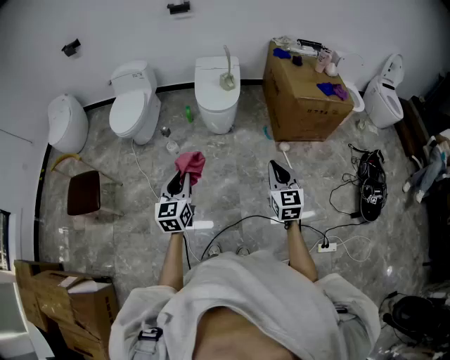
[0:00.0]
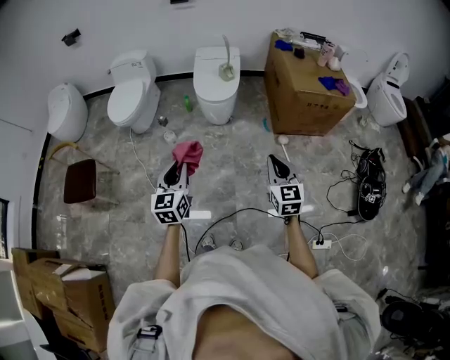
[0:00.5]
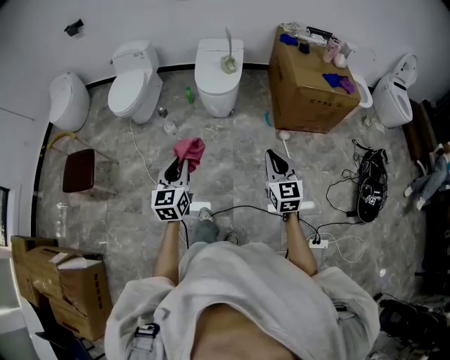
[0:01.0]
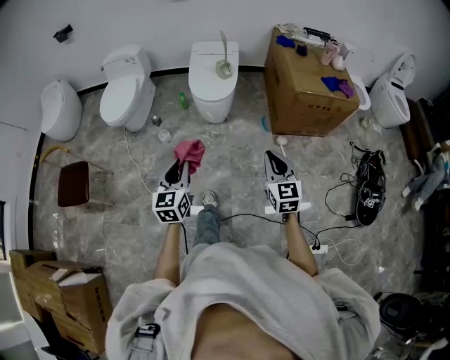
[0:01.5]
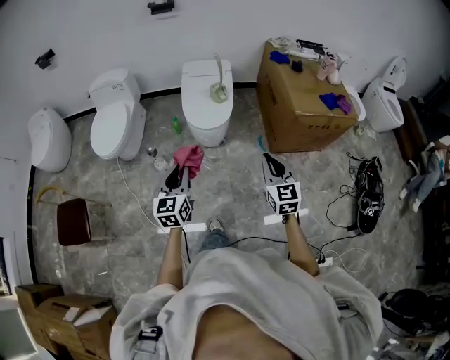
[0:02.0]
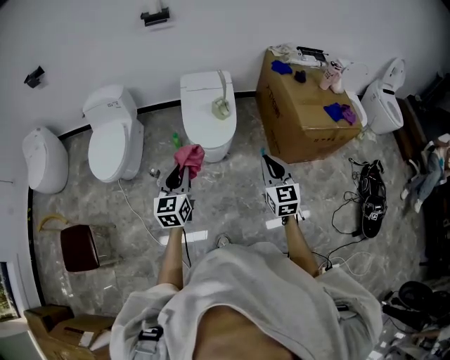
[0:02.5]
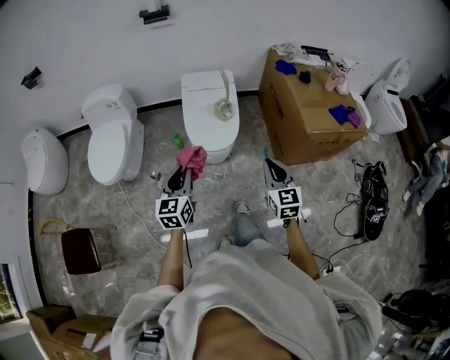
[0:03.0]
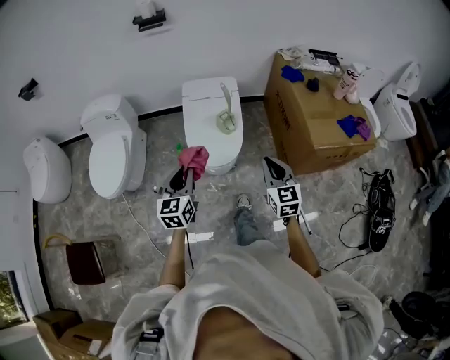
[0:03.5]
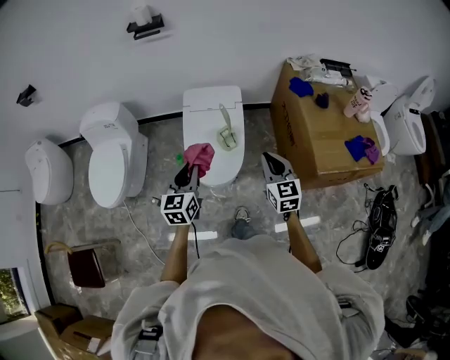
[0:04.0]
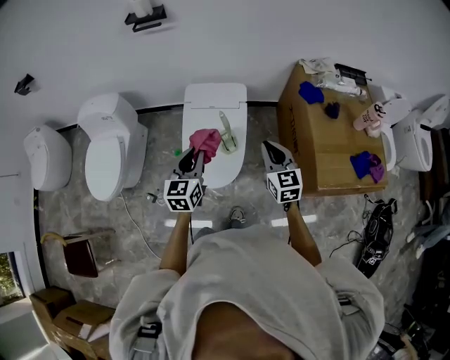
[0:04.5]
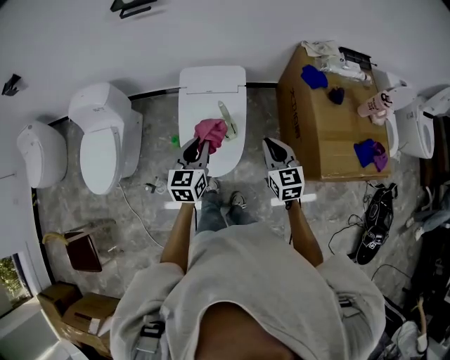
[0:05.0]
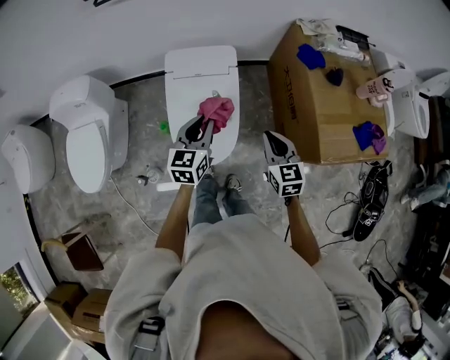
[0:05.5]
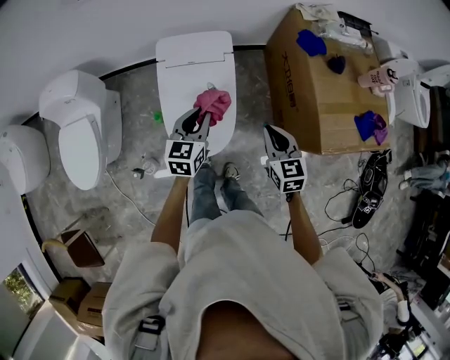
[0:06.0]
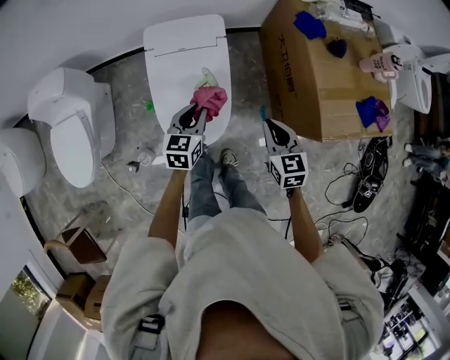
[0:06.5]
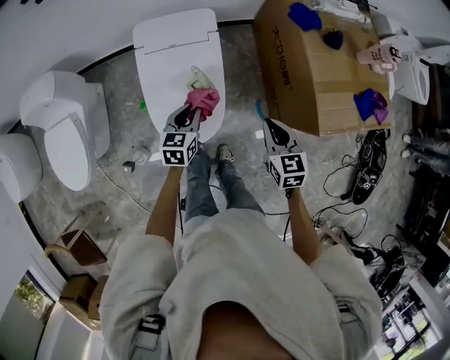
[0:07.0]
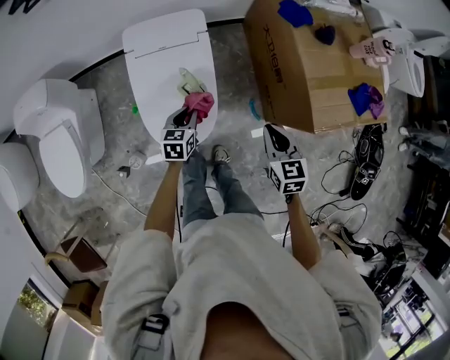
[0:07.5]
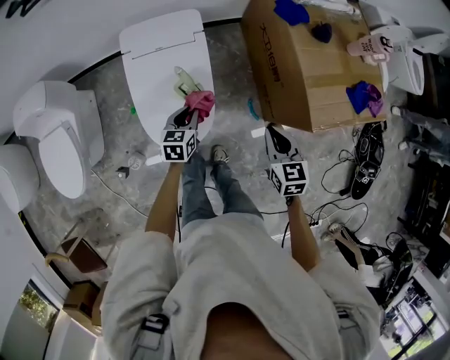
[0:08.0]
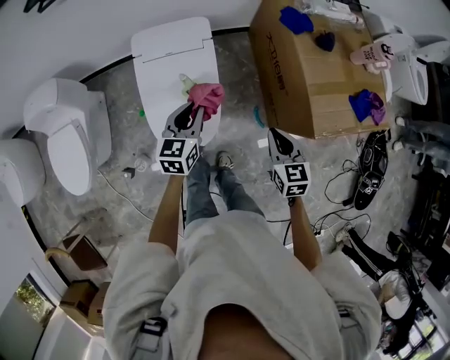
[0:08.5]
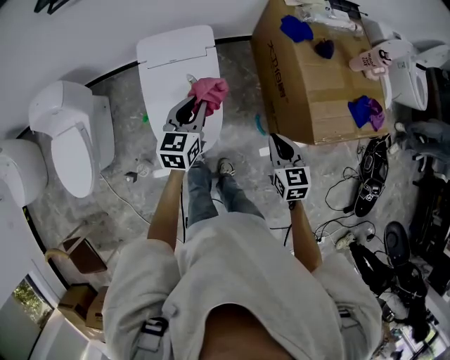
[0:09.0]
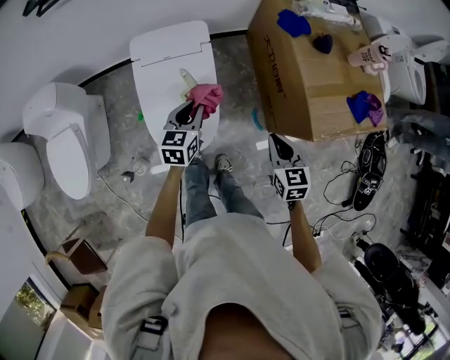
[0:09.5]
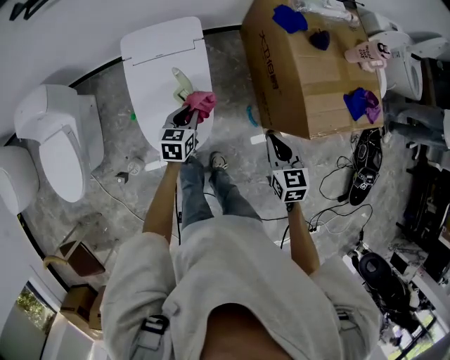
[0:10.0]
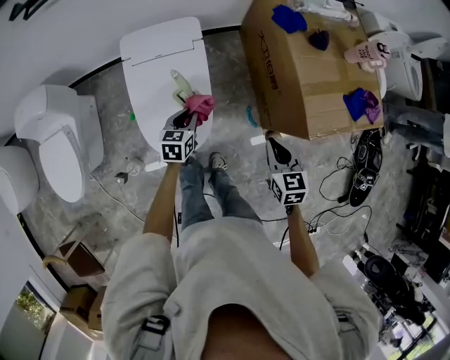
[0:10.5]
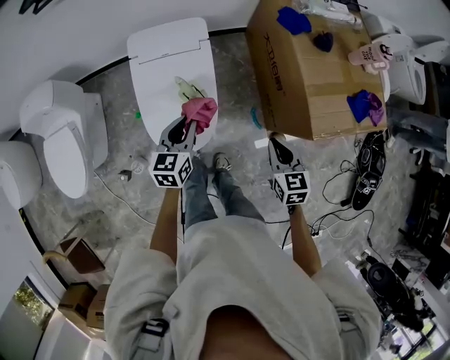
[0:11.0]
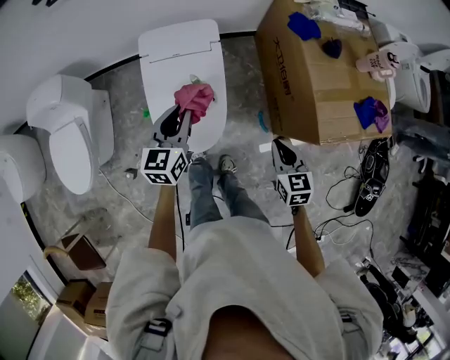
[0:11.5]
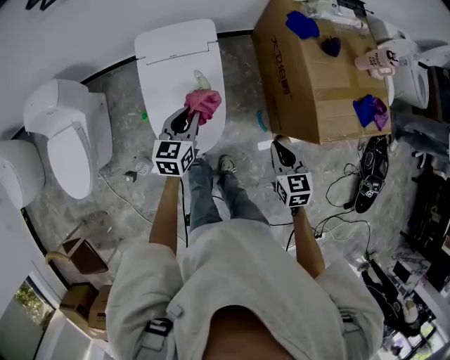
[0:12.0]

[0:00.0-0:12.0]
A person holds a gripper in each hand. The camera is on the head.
0:00.0 to 0:02.0: Both grippers move forward, roughly 25 cm.
0:02.0 to 0:04.0: The grippers both shift forward by about 40 cm.
0:04.0 to 0:06.0: The right gripper moves forward and downward, some 15 cm; the left gripper shifts about 20 cm forward, downward and to the right.
0:06.0 to 0:08.0: The right gripper travels to the right by approximately 10 cm; the left gripper moves downward, some 15 cm.
0:08.0 to 0:10.0: The left gripper travels upward and back again, approximately 15 cm each way.
0:10.0 to 0:12.0: The left gripper goes about 10 cm upward.

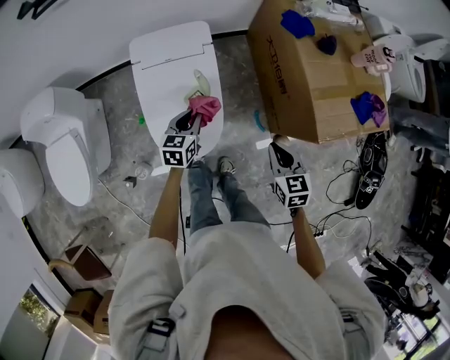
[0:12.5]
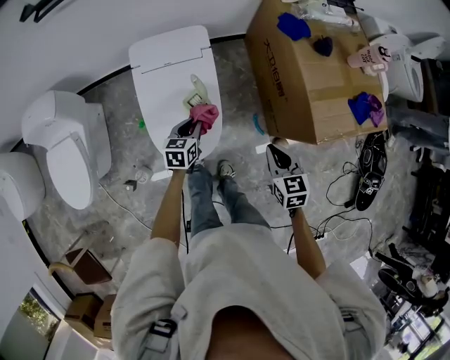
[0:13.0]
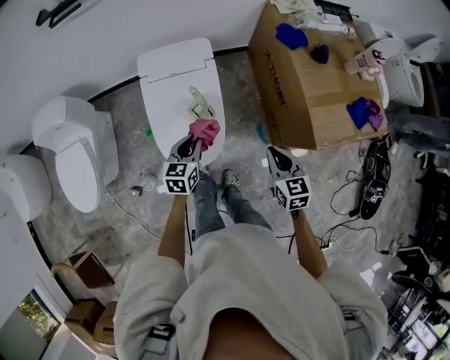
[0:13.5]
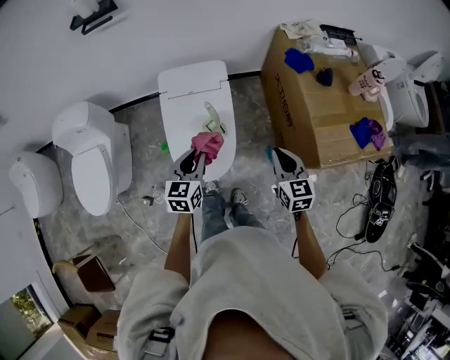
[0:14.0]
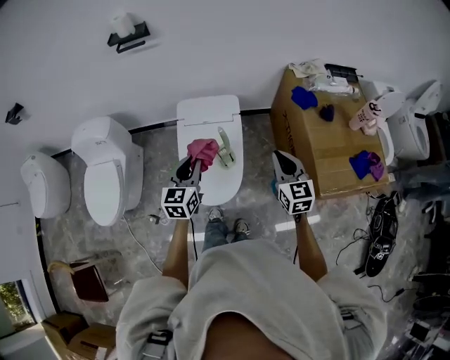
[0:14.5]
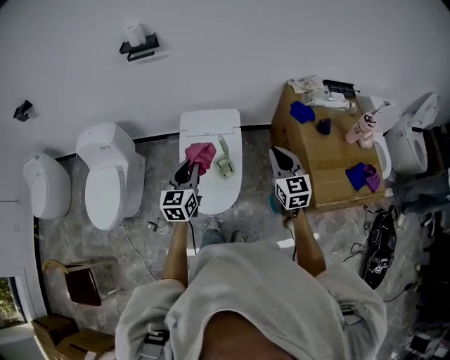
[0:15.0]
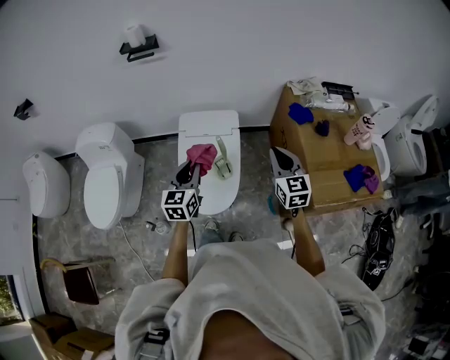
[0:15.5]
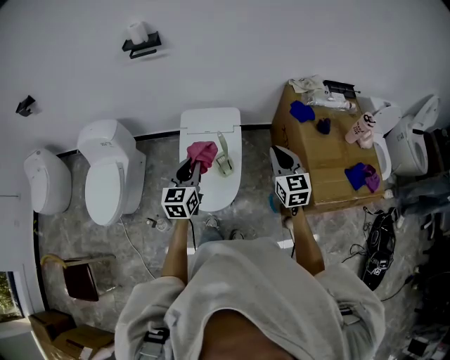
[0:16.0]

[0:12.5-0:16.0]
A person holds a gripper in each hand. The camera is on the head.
0:12.5 to 0:14.5: The right gripper is displaced upward and forward by approximately 15 cm, and rotates about 30 degrees; the left gripper moves upward, roughly 20 cm, and changes its angle by roughly 30 degrees.
0:14.5 to 0:16.0: The grippers move only a little.

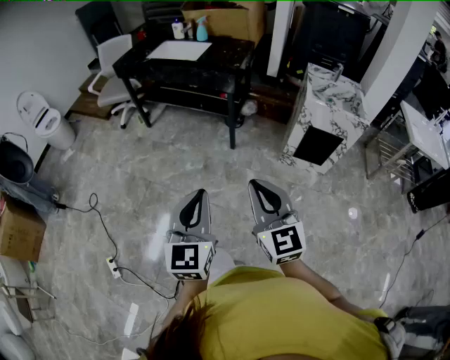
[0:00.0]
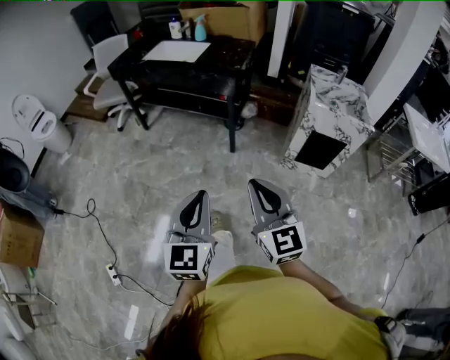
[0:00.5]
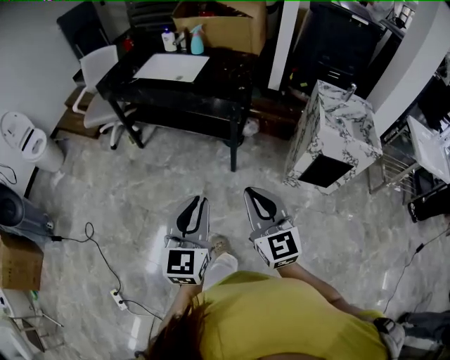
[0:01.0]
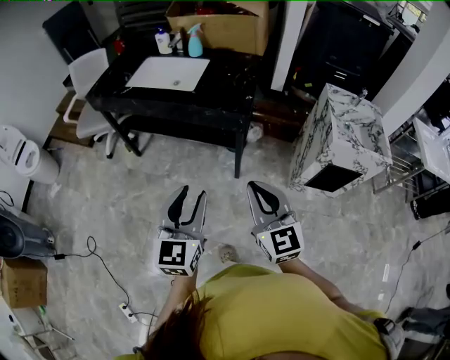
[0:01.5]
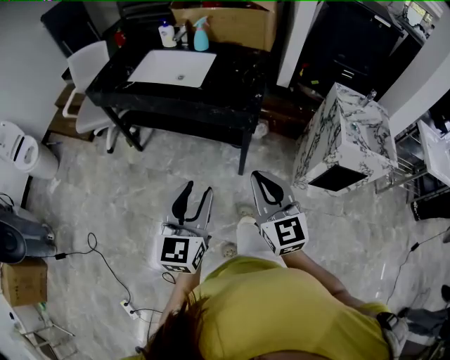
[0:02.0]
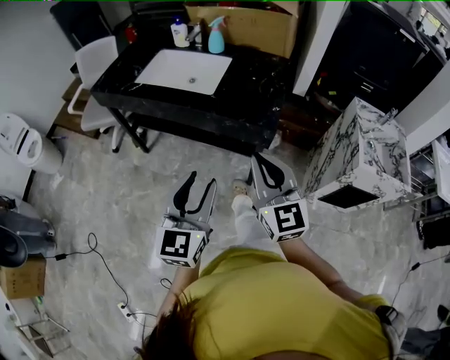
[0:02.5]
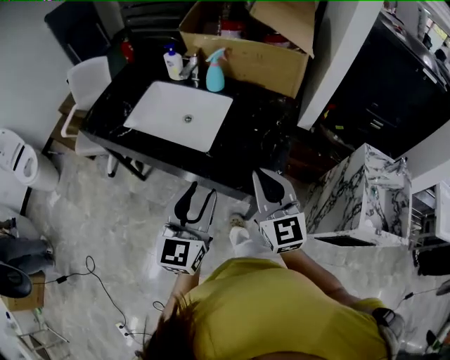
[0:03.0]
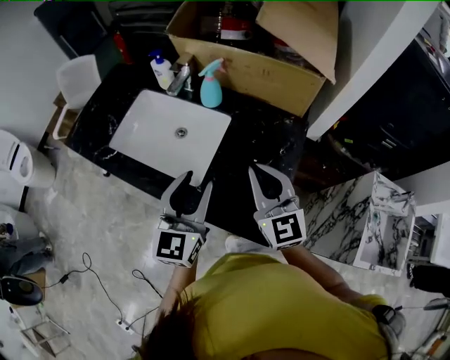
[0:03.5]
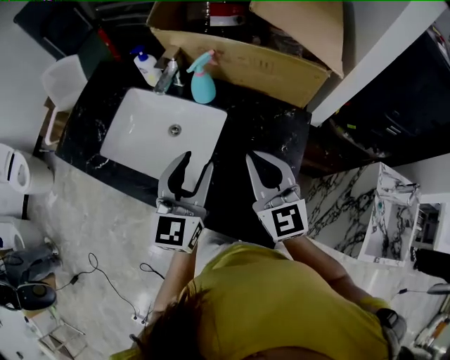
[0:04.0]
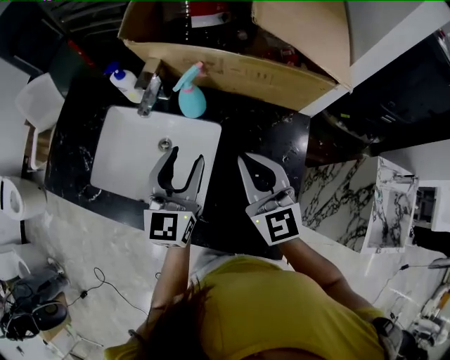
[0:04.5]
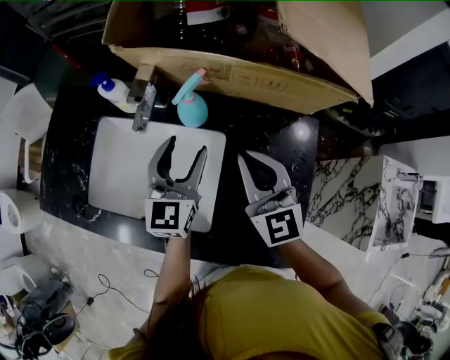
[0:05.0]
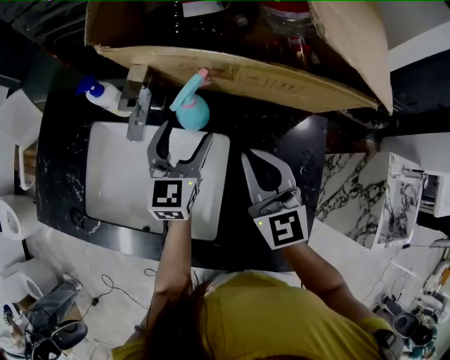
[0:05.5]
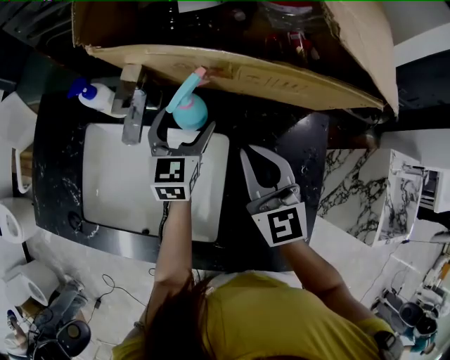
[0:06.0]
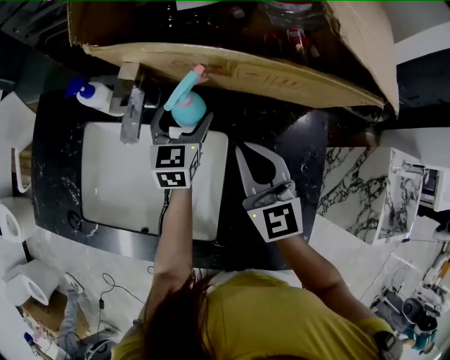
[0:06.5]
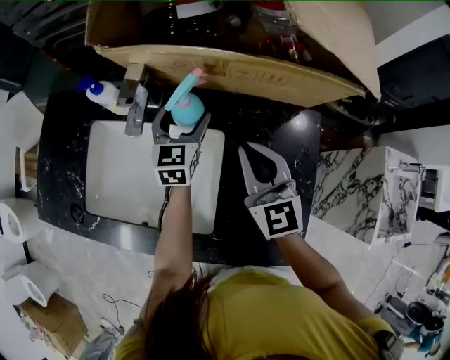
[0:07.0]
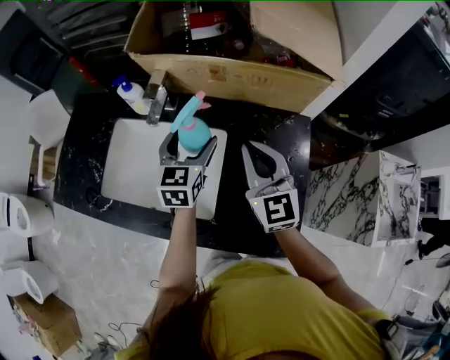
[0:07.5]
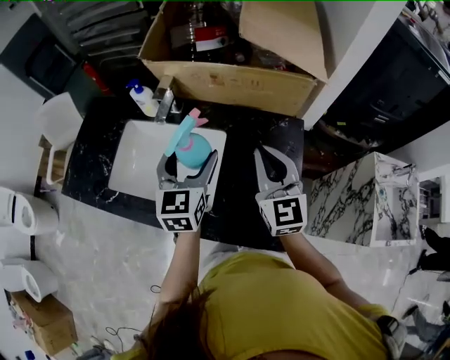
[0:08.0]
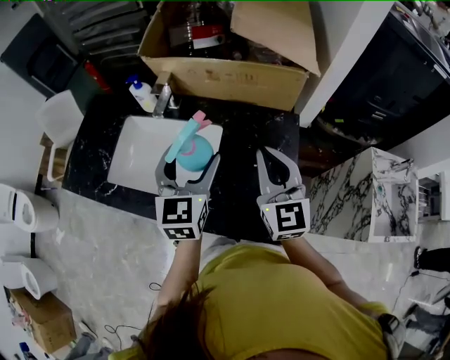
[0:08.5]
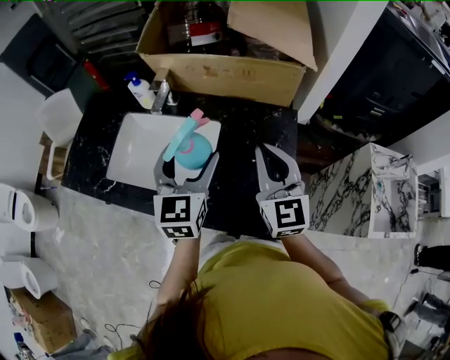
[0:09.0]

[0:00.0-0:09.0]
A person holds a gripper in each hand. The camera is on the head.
0:00.0 to 0:02.0: The pair of grippers is taken forward, roughly 50 cm. The left gripper opens up.
0:02.0 to 0:04.5: The two grippers travel together, forward, some 70 cm.
0:04.5 to 0:07.0: The left gripper moves forward and downward, some 25 cm, and opens, while the right gripper travels forward and downward by some 10 cm.
0:07.0 to 0:09.0: The right gripper travels backward, upward and to the right by about 20 cm. The left gripper travels backward and upward by approximately 30 cm.

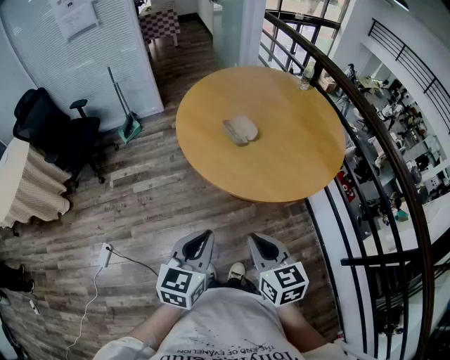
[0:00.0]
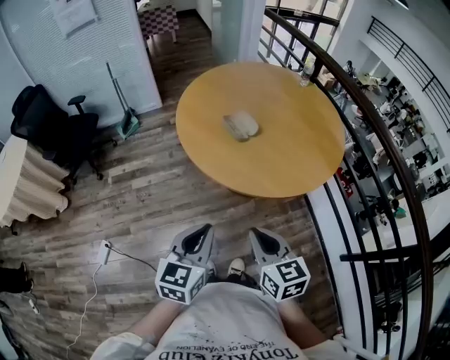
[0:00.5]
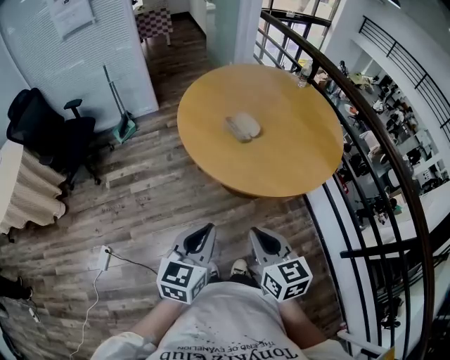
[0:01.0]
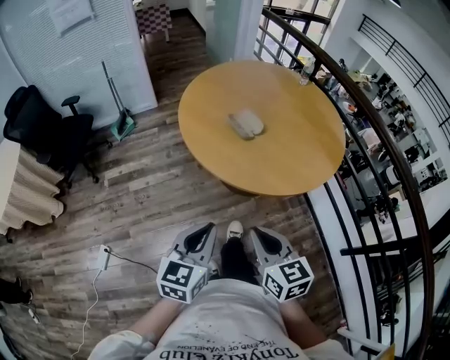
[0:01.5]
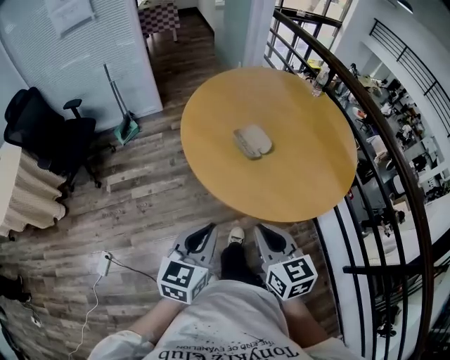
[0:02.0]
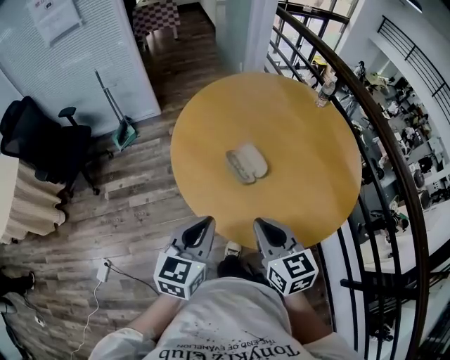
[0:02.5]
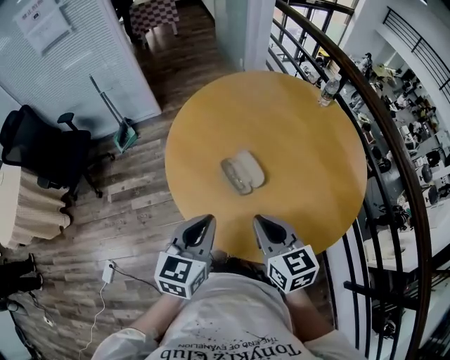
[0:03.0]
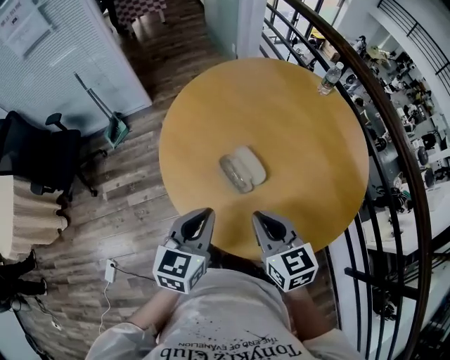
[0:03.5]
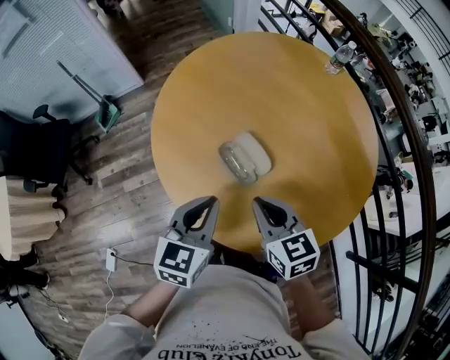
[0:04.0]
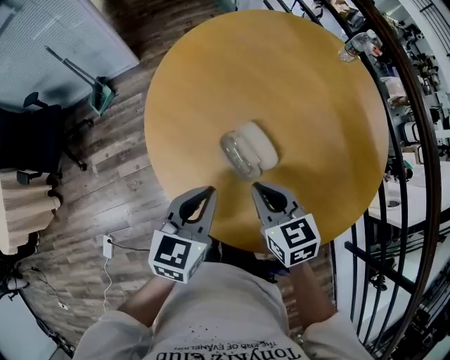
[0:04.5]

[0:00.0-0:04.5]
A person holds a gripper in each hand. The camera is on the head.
0:00.0 to 0:02.0: The left gripper moves forward and to the left, some 10 cm. The right gripper shifts roughly 10 cm forward.
0:02.0 to 0:04.5: The grippers both shift forward by about 30 cm.
